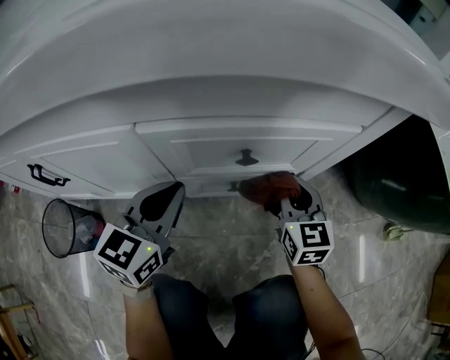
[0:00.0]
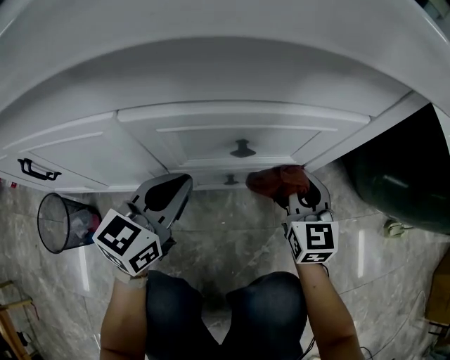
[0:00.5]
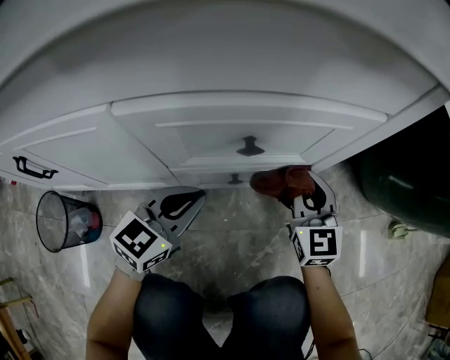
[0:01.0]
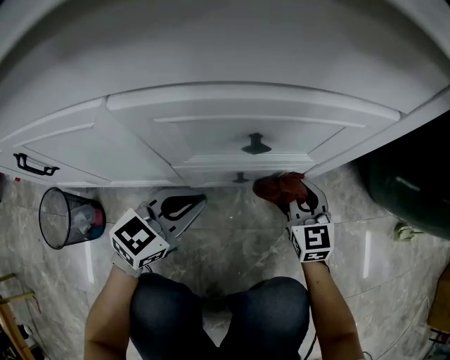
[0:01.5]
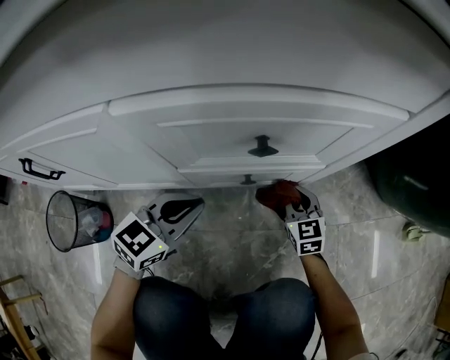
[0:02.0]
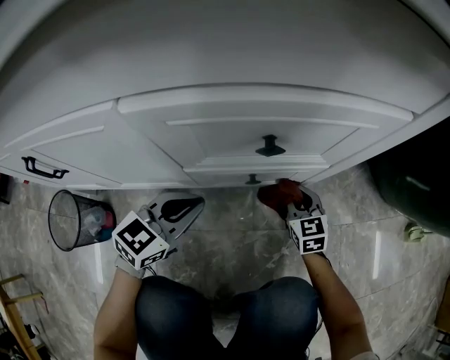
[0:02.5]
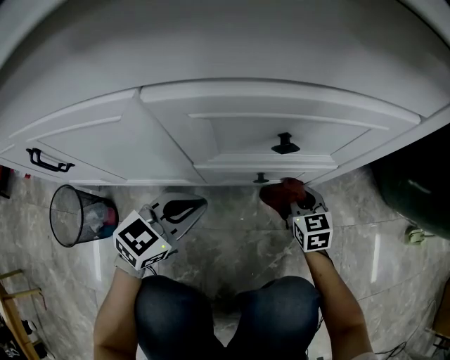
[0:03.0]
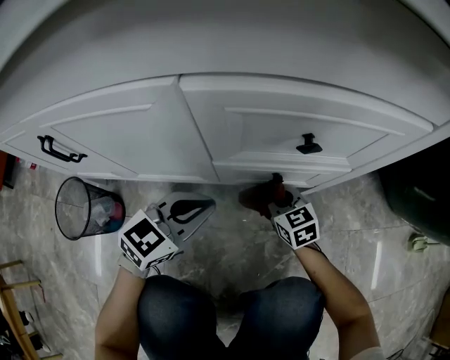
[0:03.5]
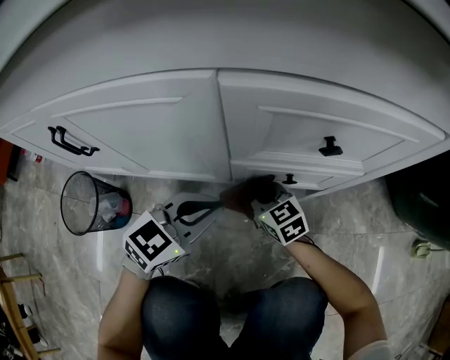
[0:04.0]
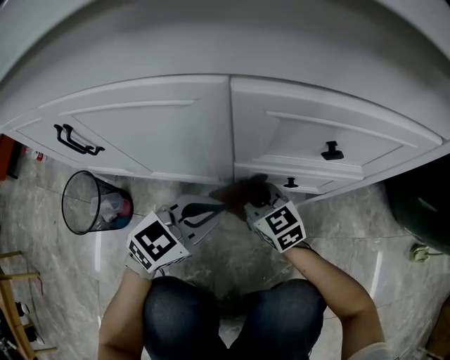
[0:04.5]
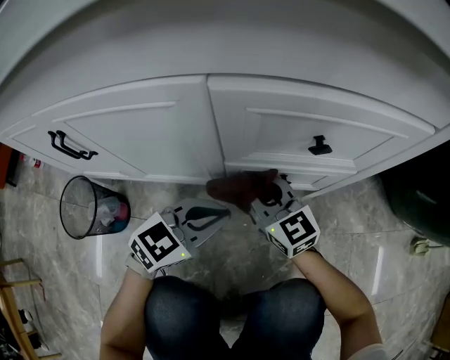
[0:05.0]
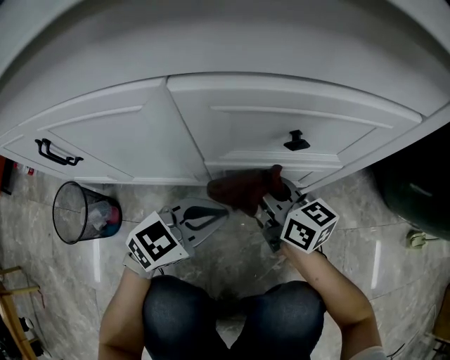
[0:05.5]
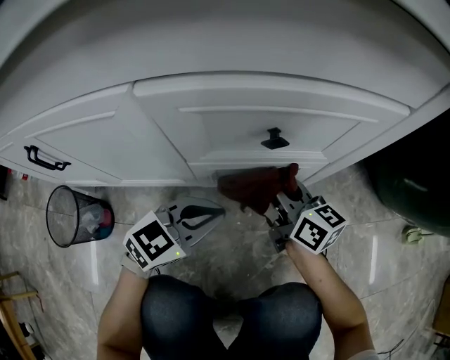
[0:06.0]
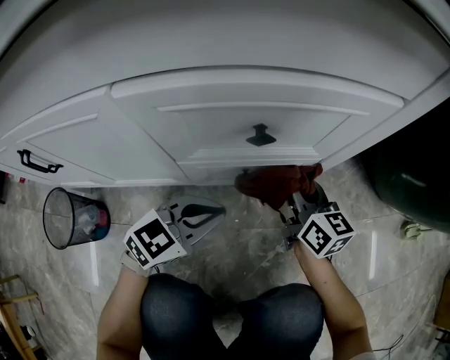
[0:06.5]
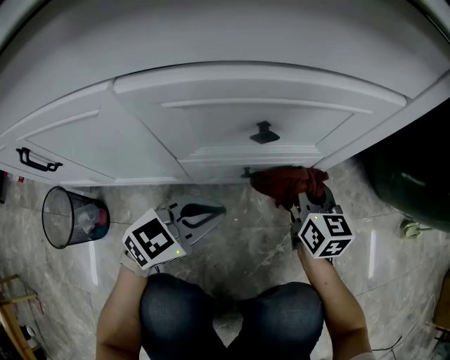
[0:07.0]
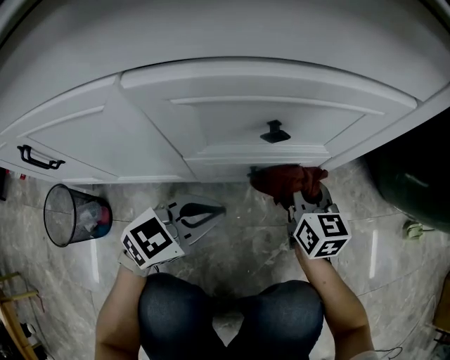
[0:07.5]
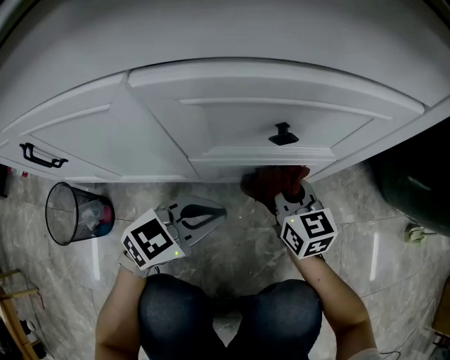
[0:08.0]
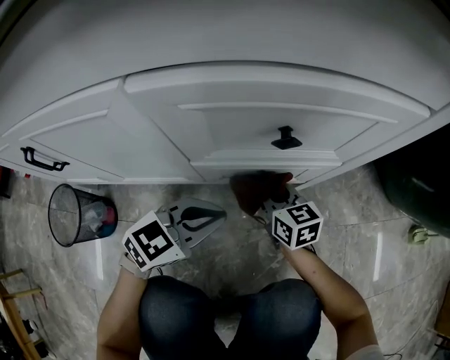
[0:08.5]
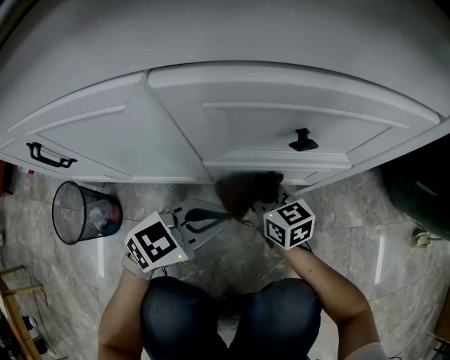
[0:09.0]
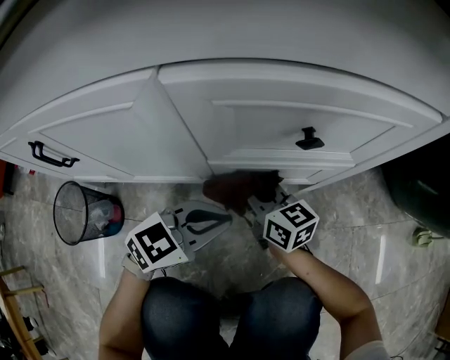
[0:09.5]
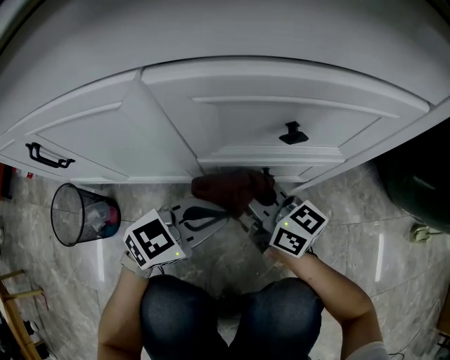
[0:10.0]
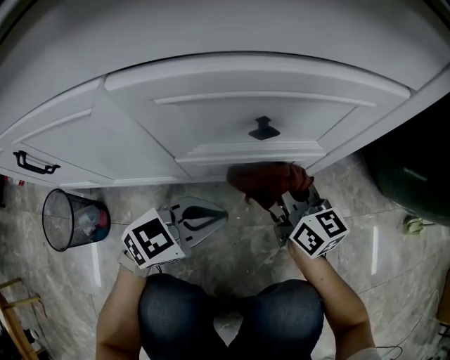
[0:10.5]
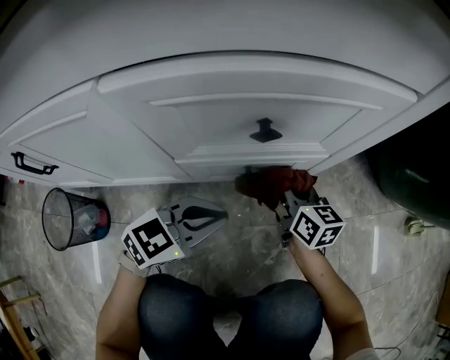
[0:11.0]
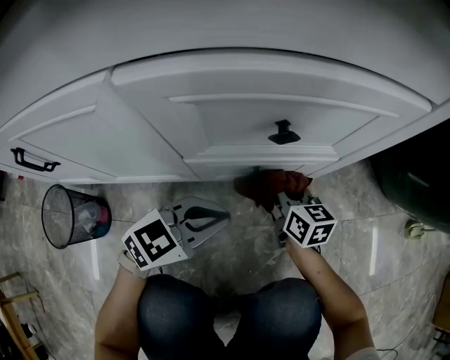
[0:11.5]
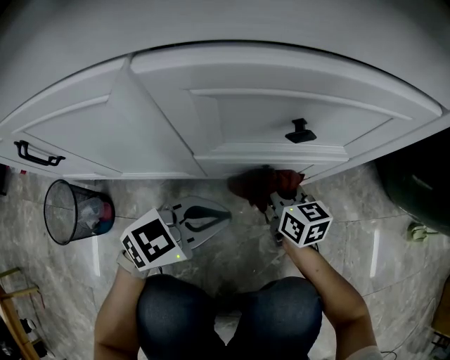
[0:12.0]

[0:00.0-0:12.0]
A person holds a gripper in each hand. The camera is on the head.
0.0 to 2.0 s: The right gripper moves downward, some 20 cm, while the left gripper shifts roughly 10 cm downward, and turns by about 20 degrees.
2.0 to 4.0 s: The right gripper travels to the left by some 20 cm, and swivels some 30 degrees, while the left gripper moves approximately 5 cm.
4.0 to 6.0 s: The left gripper heads to the right, covering about 10 cm. Meanwhile the right gripper goes some 20 cm upward and to the right, and rotates some 40 degrees.
6.0 to 8.0 s: The right gripper reaches some 10 cm to the right, then returns, and rotates roughly 30 degrees.
8.0 to 10.0 s: The right gripper is displaced to the left by about 10 cm, and changes its angle by about 30 degrees.
10.0 to 12.0 s: The right gripper shifts roughly 15 cm downward, to the right and forward, and turns by about 30 degrees.

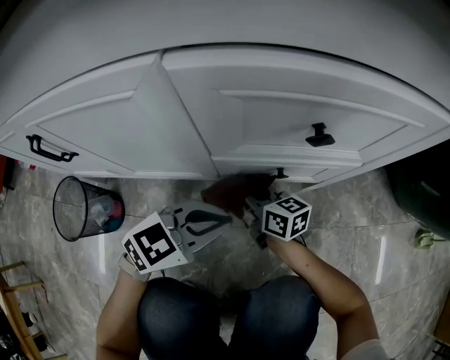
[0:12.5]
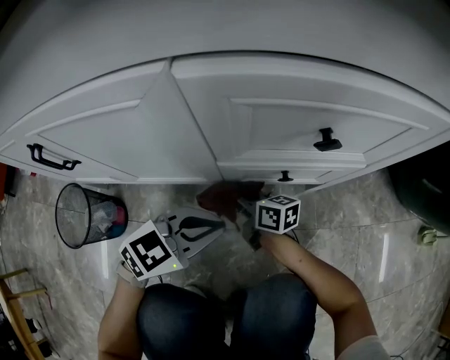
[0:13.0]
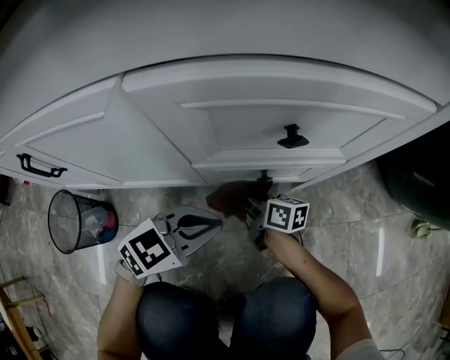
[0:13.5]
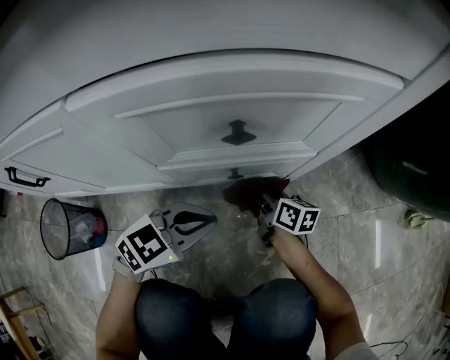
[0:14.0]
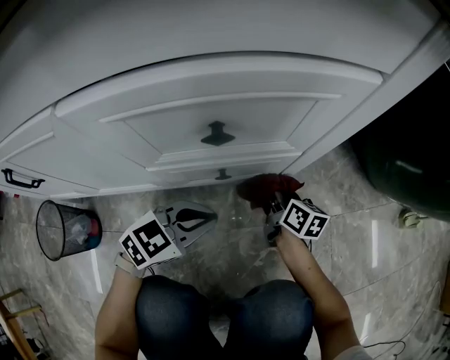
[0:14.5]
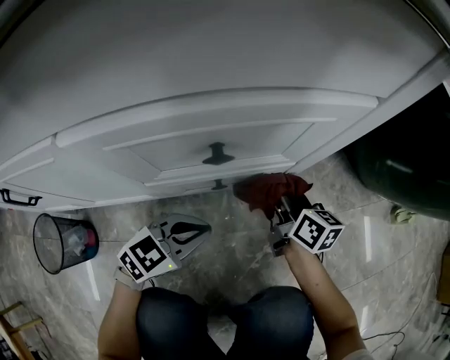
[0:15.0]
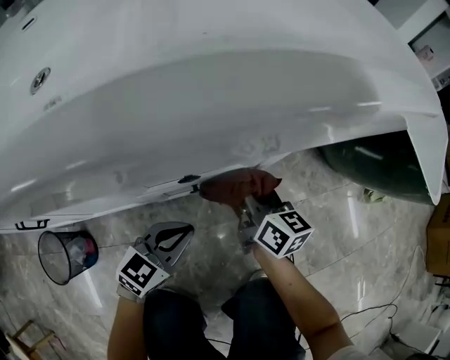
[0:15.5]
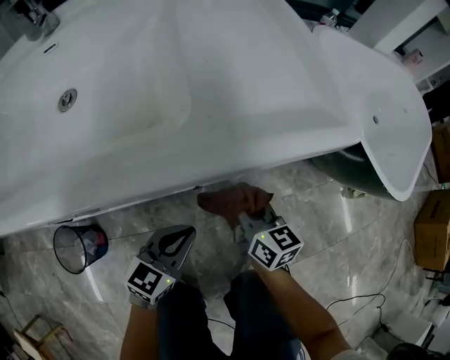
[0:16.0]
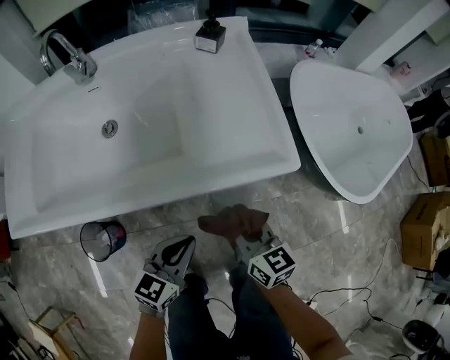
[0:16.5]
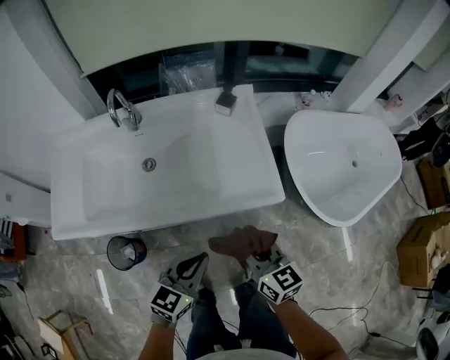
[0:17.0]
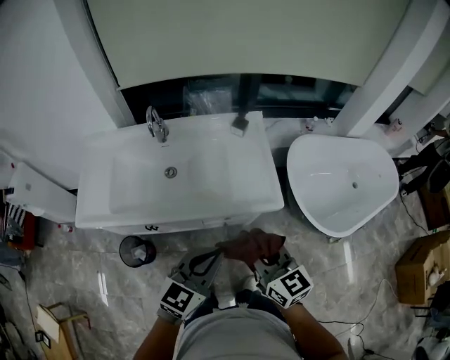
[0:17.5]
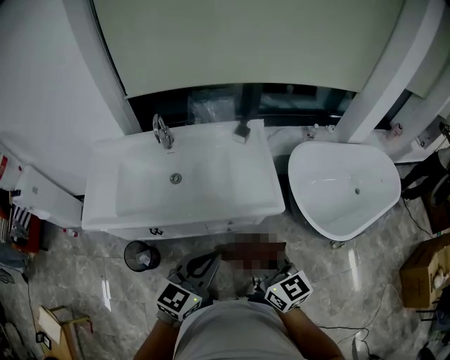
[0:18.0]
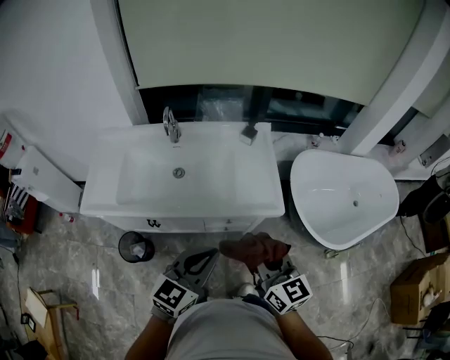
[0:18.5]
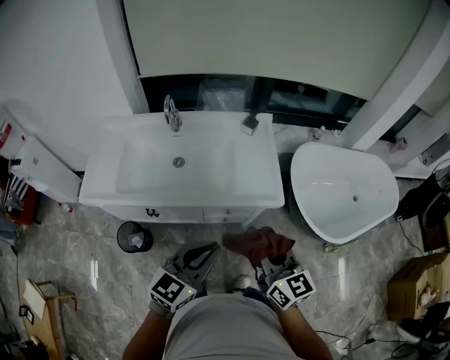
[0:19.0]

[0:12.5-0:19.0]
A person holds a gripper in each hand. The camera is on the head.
12.5 to 14.5 s: The left gripper shifts approximately 5 cm to the right; the right gripper goes roughly 20 cm to the right, and swivels approximately 30 degrees.
14.5 to 17.0 s: The grippers both shift upward by some 60 cm. The left gripper turns by about 30 degrees; the right gripper changes its angle by approximately 30 degrees.
17.0 to 19.0 s: The right gripper travels upward and backward by roughly 15 cm. The left gripper goes approximately 15 cm upward.

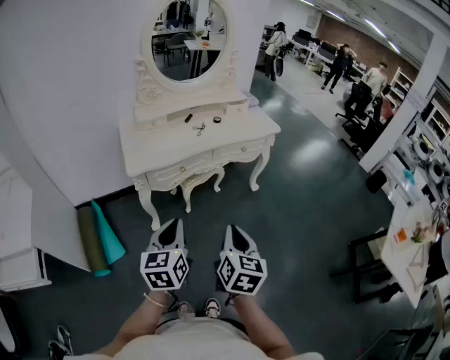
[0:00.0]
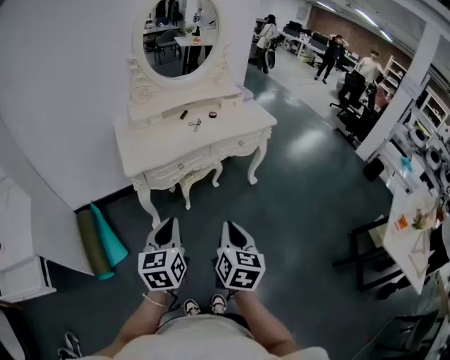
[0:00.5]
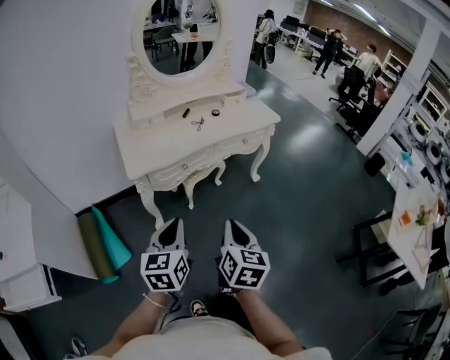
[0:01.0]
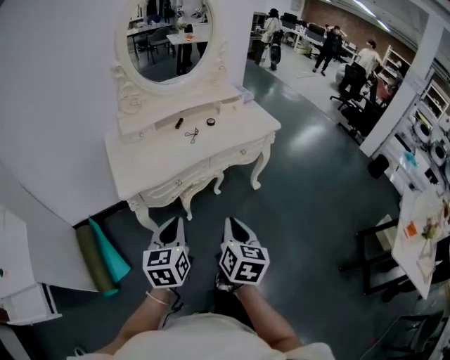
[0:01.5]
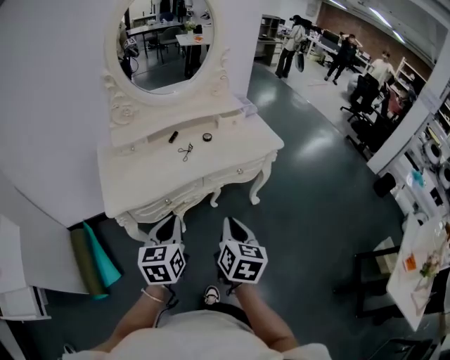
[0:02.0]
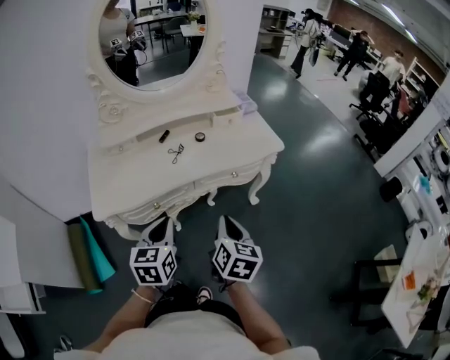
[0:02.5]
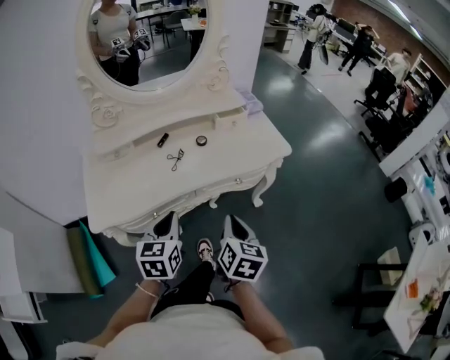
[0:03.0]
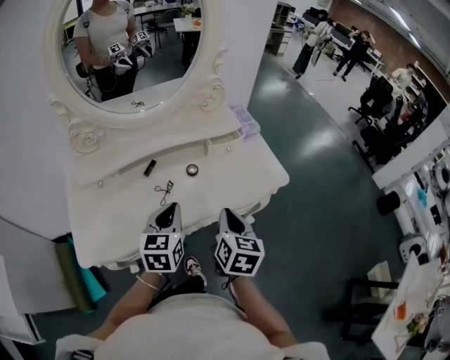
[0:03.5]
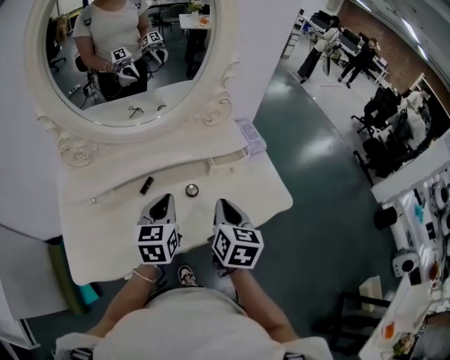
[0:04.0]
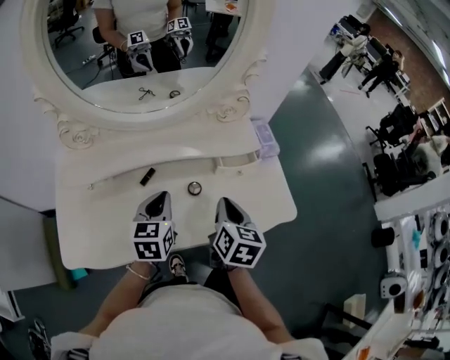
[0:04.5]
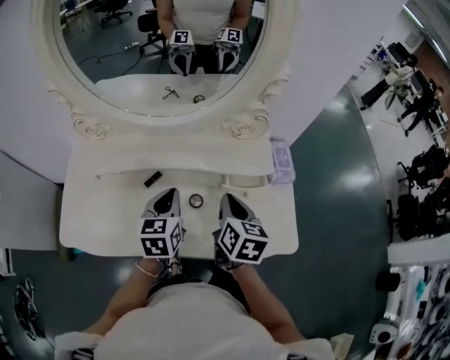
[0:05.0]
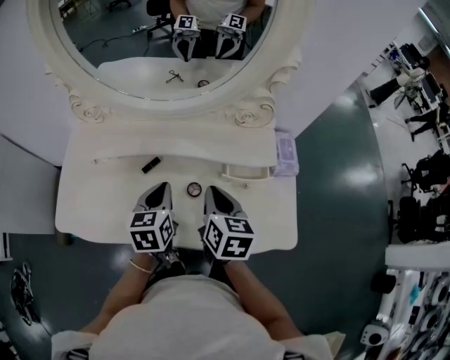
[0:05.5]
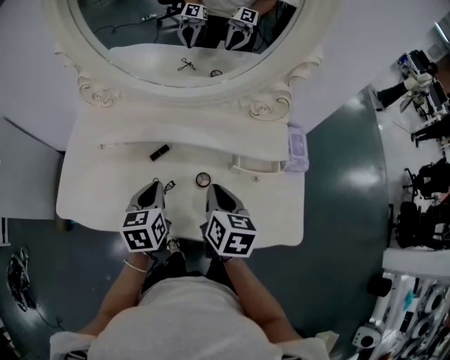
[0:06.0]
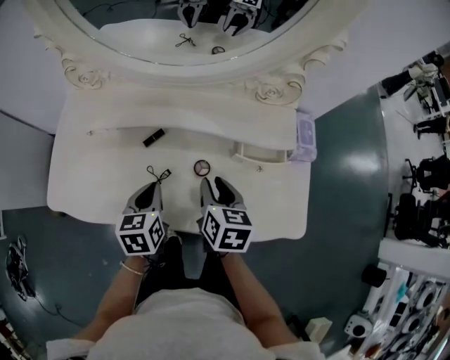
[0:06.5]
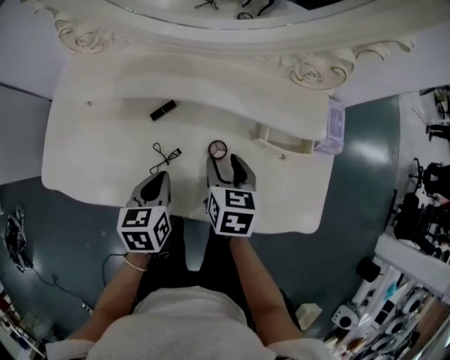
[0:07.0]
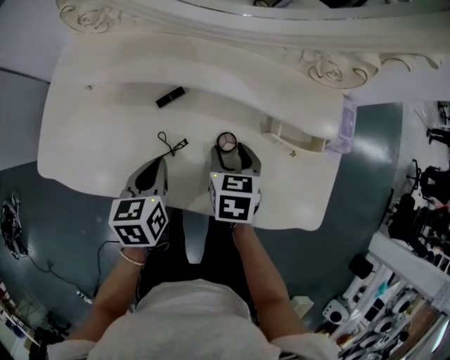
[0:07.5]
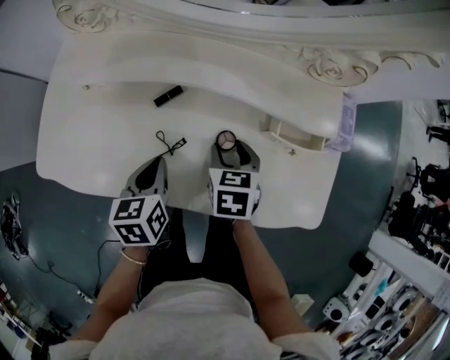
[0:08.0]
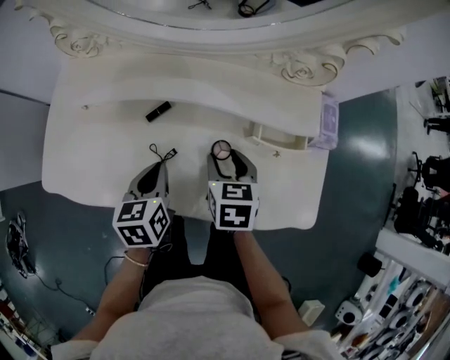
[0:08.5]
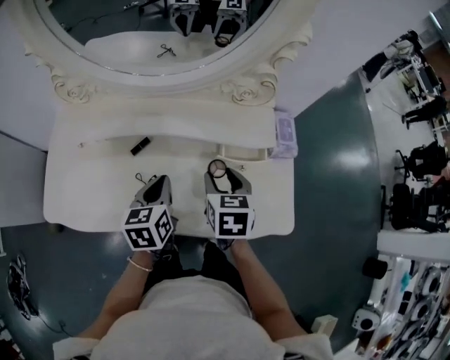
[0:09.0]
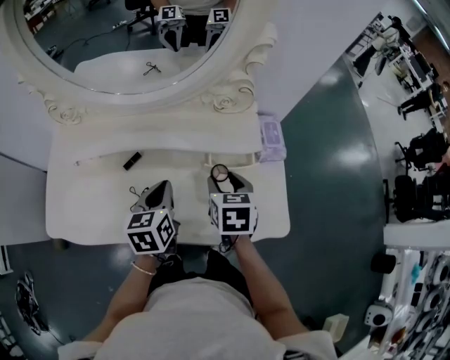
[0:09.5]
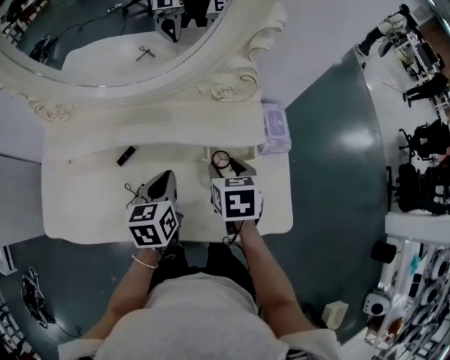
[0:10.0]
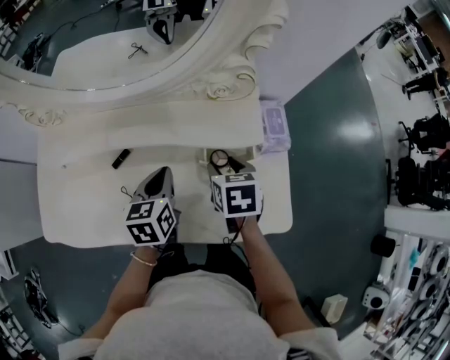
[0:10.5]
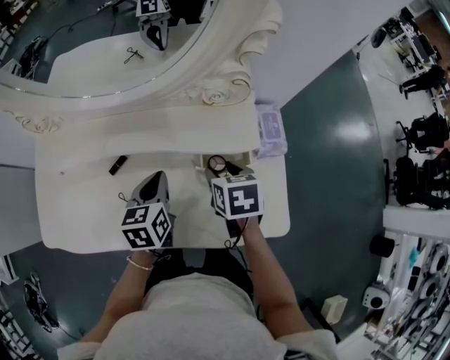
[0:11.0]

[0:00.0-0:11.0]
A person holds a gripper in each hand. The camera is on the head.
0.0 to 2.0 s: The grippers both shift forward by some 25 cm.
2.0 to 3.5 s: Both grippers move forward, some 30 cm.
3.5 to 5.5 s: The left gripper shifts by approximately 20 cm, and turns by roughly 30 degrees; the right gripper shifts by roughly 25 cm, and changes its angle by roughly 30 degrees.
5.5 to 7.5 s: The right gripper moves downward, about 15 cm, changes its angle by some 30 degrees, and opens; the left gripper travels downward and to the left by roughly 15 cm.
7.5 to 9.0 s: The left gripper goes some 10 cm to the right and upward. Meanwhile the right gripper goes approximately 15 cm upward and to the right.
9.0 to 11.0 s: The left gripper is displaced forward and to the right by roughly 10 cm. Meanwhile the right gripper heads to the right and forward, covering about 10 cm.
